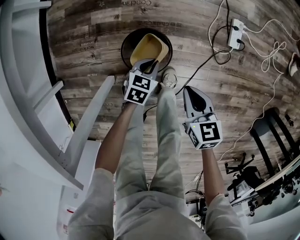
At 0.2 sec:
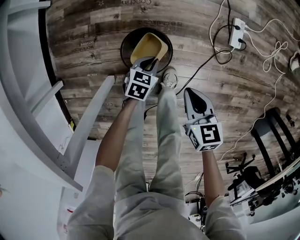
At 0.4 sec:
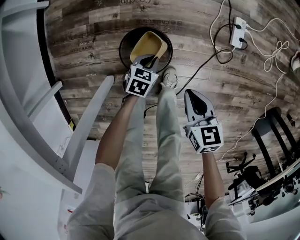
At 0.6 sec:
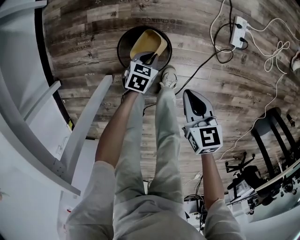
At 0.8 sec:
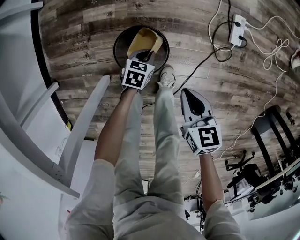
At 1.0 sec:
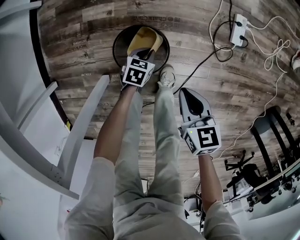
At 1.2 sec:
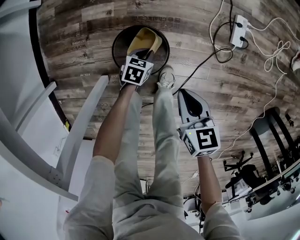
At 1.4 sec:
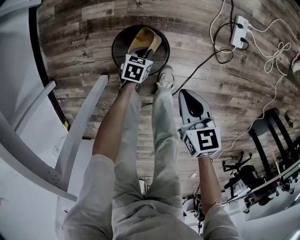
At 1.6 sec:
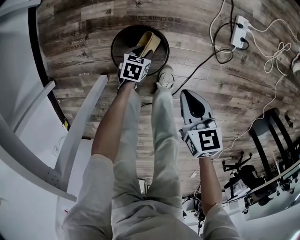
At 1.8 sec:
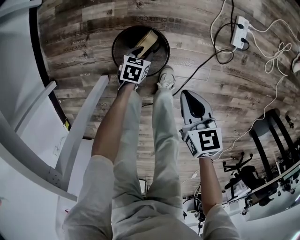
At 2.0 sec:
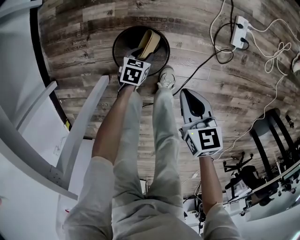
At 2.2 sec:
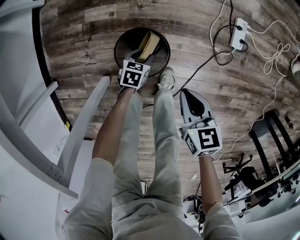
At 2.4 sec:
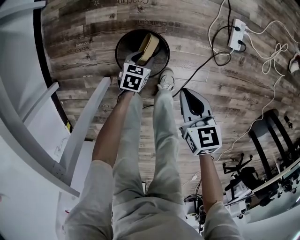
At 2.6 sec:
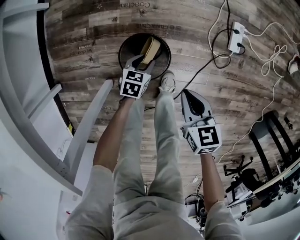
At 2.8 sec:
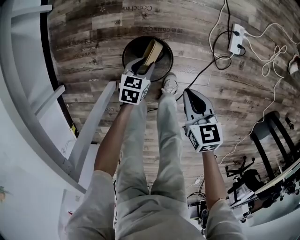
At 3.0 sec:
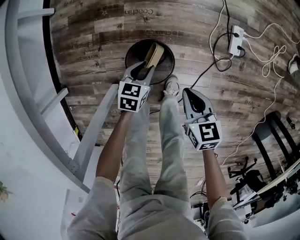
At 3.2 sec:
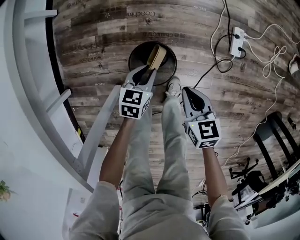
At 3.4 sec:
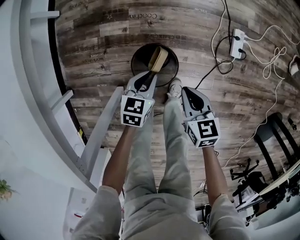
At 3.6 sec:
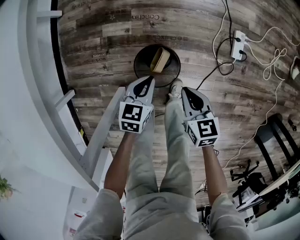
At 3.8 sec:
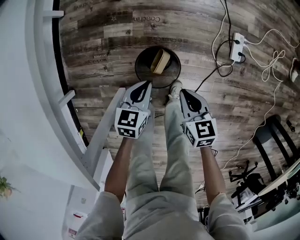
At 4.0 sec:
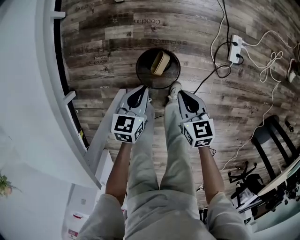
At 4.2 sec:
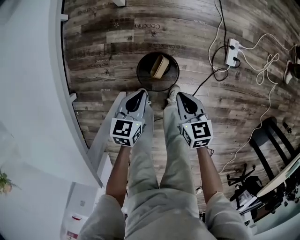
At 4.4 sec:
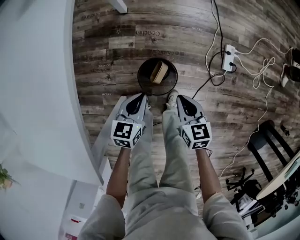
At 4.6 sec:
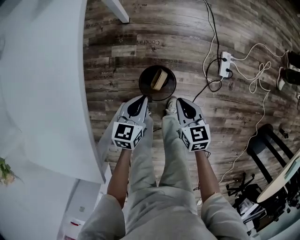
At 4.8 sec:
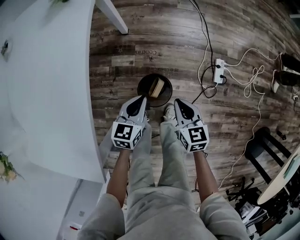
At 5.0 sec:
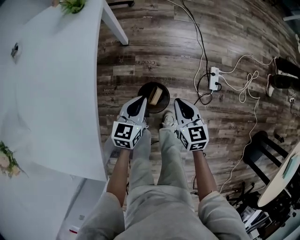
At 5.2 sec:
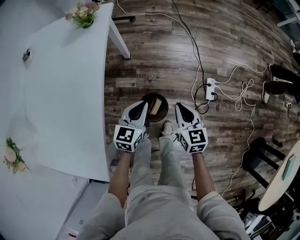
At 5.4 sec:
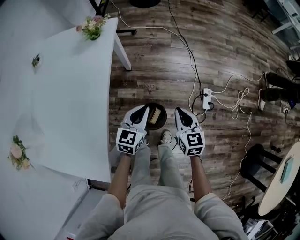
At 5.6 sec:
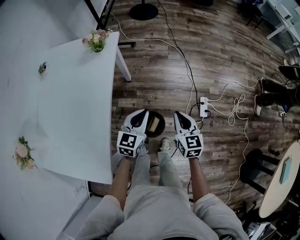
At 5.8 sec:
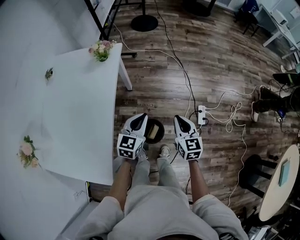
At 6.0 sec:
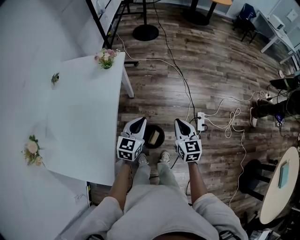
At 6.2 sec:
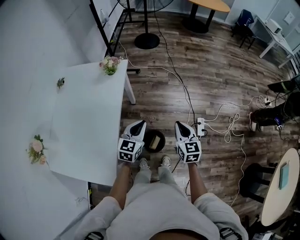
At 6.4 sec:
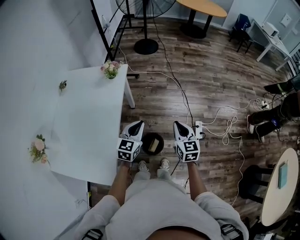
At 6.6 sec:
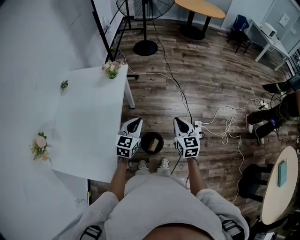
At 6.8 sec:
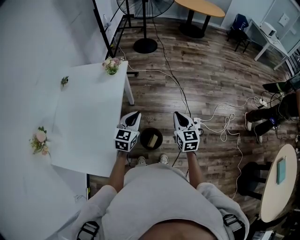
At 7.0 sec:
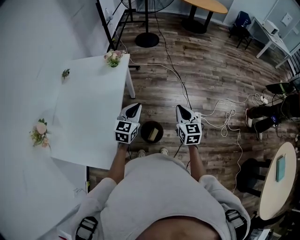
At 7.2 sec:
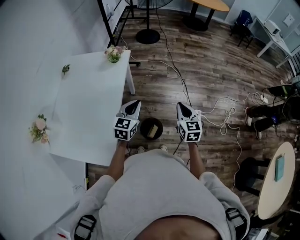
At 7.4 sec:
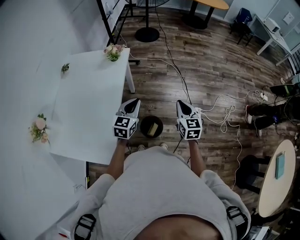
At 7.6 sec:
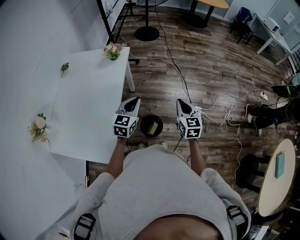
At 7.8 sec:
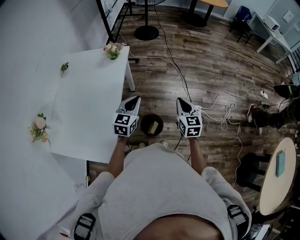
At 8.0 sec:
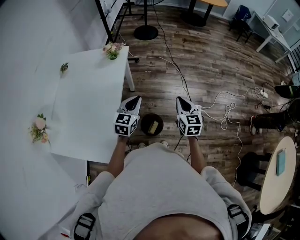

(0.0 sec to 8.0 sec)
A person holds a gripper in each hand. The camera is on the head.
0.0 sec - 1.6 sec: The left gripper shifts some 15 cm downward, and opens its fingers.
1.6 sec - 3.2 sec: The left gripper goes some 20 cm upward, while the right gripper ends up roughly 5 cm from where it was.
3.2 sec - 4.8 sec: The right gripper is displaced upward by approximately 15 cm. Meanwhile the left gripper heads upward, covering roughly 25 cm, and closes its fingers.
4.8 sec - 6.4 sec: Both grippers travel together upward, some 30 cm. The right gripper turns by roughly 20 degrees, while the left gripper changes its angle by approximately 20 degrees.
6.4 sec - 8.0 sec: The grippers make only small movements.

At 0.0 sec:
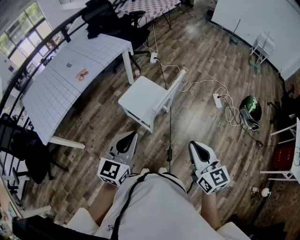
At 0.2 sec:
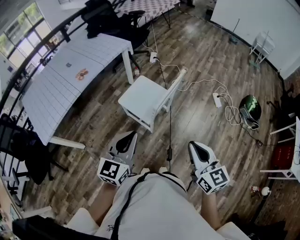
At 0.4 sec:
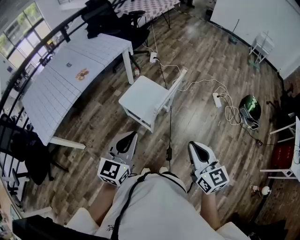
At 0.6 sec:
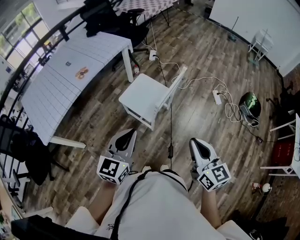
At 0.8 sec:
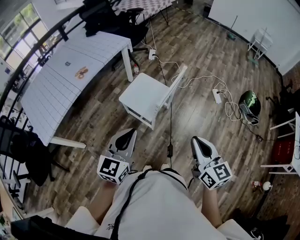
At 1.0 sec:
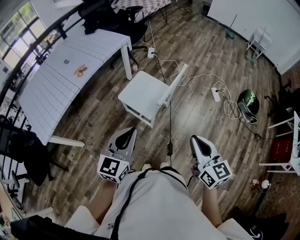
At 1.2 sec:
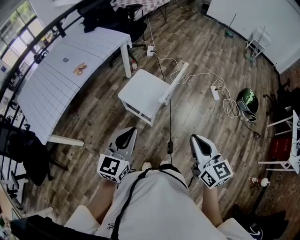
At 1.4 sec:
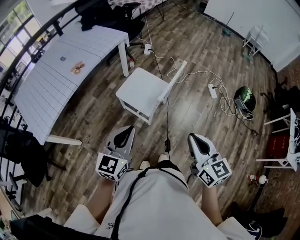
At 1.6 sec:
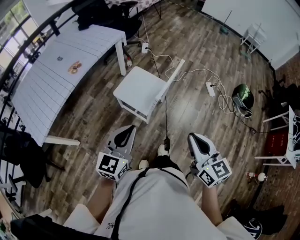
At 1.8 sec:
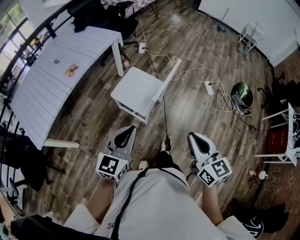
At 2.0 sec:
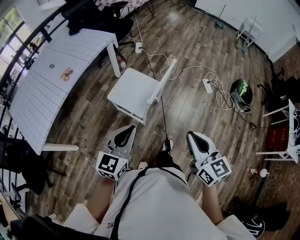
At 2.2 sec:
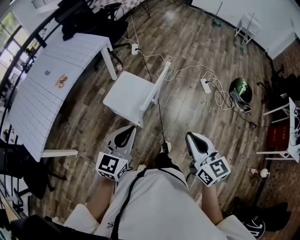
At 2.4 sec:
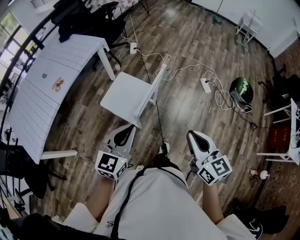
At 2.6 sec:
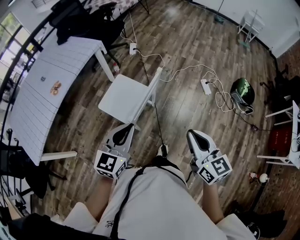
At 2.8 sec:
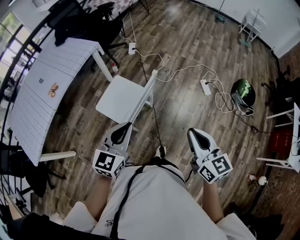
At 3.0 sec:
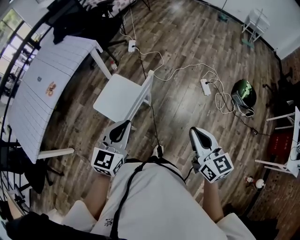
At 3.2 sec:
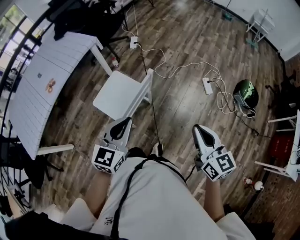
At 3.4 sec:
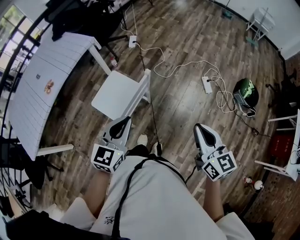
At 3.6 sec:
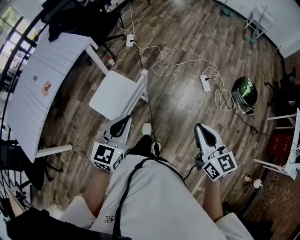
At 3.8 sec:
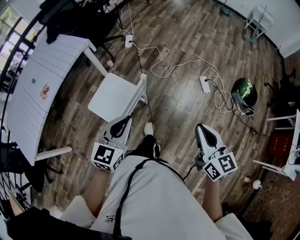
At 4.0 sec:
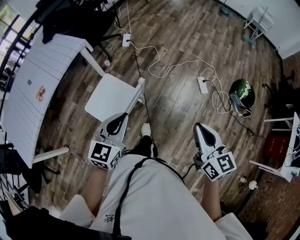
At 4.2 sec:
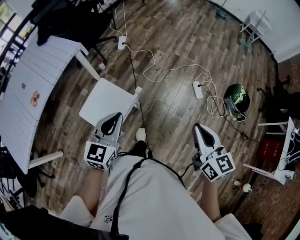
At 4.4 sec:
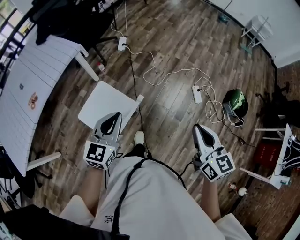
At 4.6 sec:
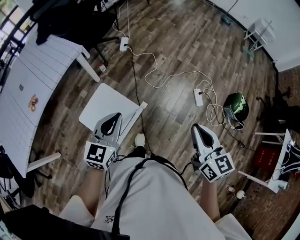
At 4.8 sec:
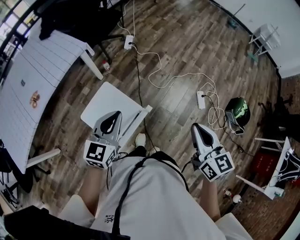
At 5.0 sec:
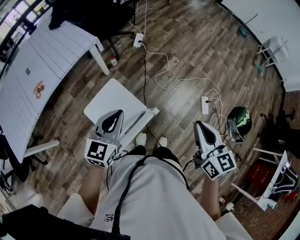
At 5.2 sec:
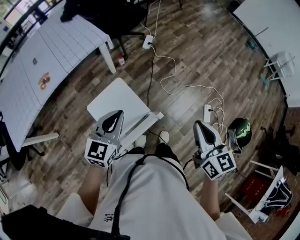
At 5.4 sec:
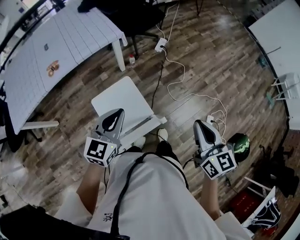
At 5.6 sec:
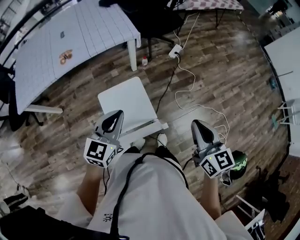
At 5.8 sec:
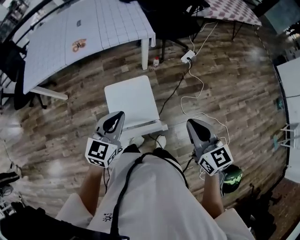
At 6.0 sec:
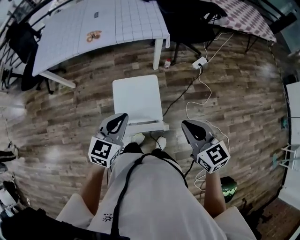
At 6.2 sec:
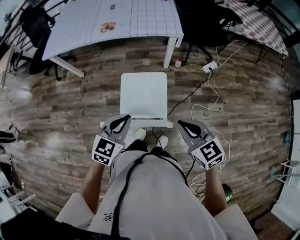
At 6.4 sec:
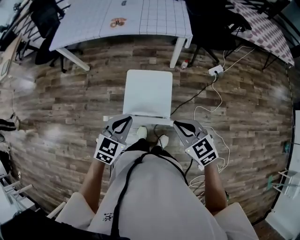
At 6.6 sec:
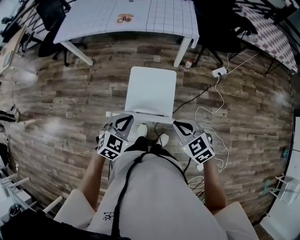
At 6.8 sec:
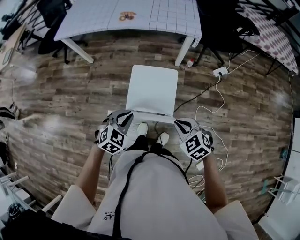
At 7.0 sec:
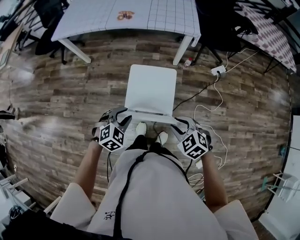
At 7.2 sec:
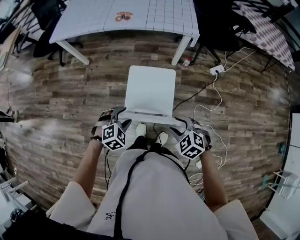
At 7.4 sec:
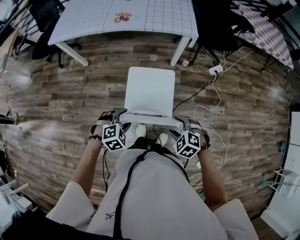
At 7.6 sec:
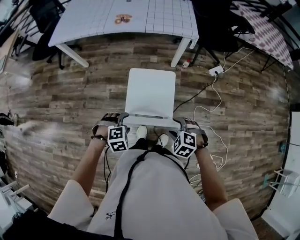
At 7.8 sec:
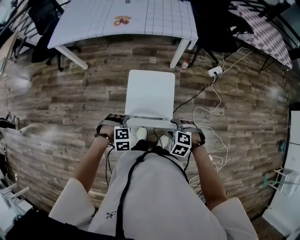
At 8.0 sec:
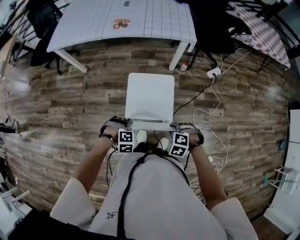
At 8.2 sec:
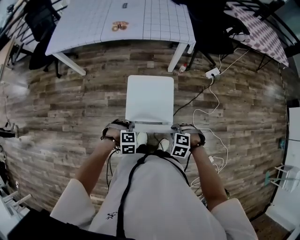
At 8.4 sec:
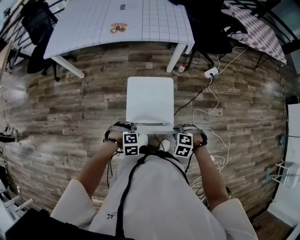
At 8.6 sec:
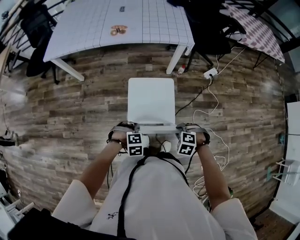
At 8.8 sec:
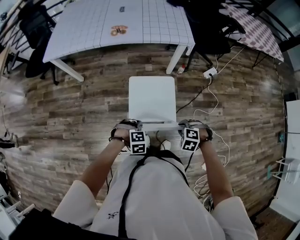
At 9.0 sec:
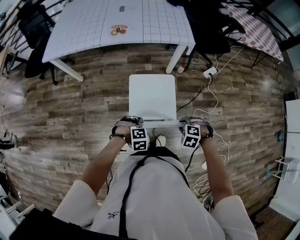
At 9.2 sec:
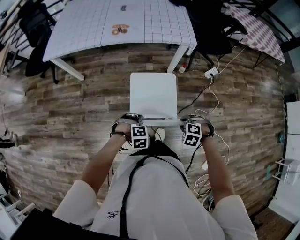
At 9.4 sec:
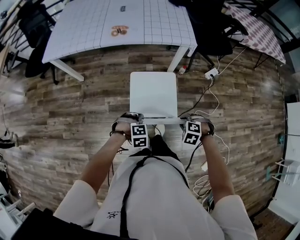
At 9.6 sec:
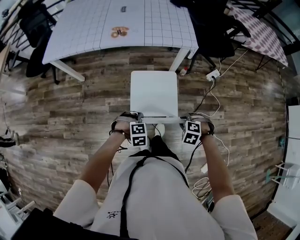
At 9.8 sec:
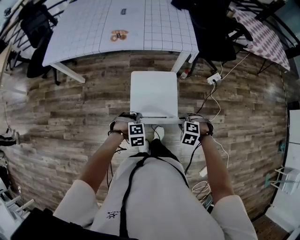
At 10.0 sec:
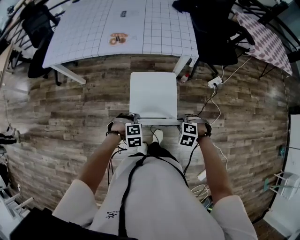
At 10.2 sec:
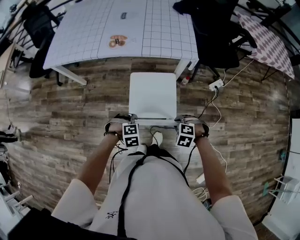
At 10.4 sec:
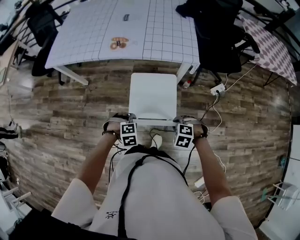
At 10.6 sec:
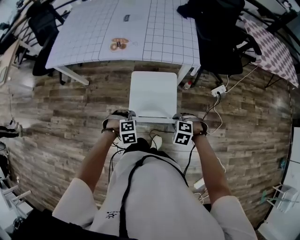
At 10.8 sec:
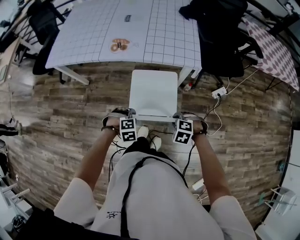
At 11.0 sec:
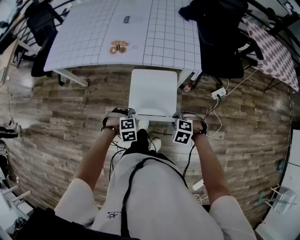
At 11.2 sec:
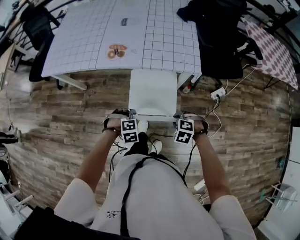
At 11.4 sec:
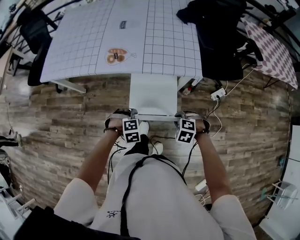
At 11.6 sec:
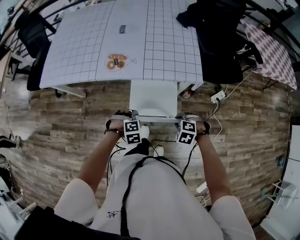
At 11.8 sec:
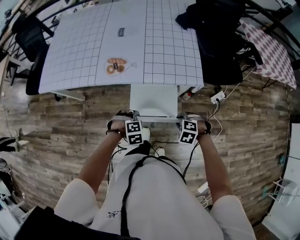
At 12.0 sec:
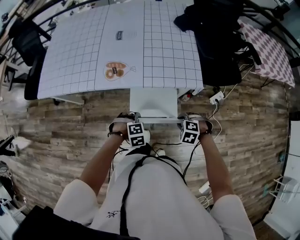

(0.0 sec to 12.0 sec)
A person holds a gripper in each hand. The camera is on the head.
0.0 sec - 1.6 sec: Both grippers travel together to the left, roughly 5 cm.
1.6 sec - 3.0 sec: Both grippers move to the right and forward, about 30 cm.
3.0 sec - 4.4 sec: Both grippers move forward, about 20 cm.
4.4 sec - 6.0 sec: The left gripper turns by approximately 50 degrees, while the right gripper moves roughly 25 cm, and changes its angle by roughly 70 degrees.
6.0 sec - 7.6 sec: The two grippers go roughly 20 cm downward and to the left. The left gripper tips its fingers downward by approximately 50 degrees, and opens its fingers, while the right gripper points its fingers approximately 40 degrees further downward, and opens up.
7.6 sec - 9.0 sec: The left gripper shifts by roughly 5 cm, and closes; the right gripper changes place by about 5 cm, and closes its fingers.
9.0 sec - 10.4 sec: The right gripper moves approximately 20 cm, while the left gripper shifts by roughly 20 cm.
10.4 sec - 12.0 sec: The left gripper shifts by some 25 cm; the right gripper moves roughly 20 cm.

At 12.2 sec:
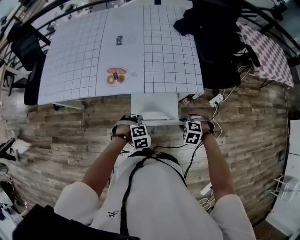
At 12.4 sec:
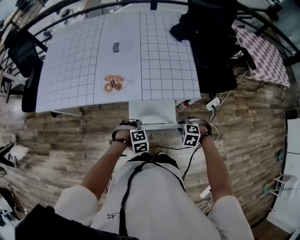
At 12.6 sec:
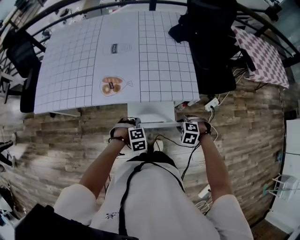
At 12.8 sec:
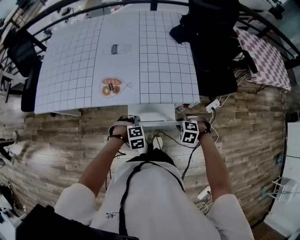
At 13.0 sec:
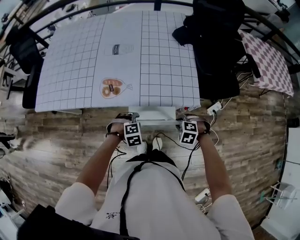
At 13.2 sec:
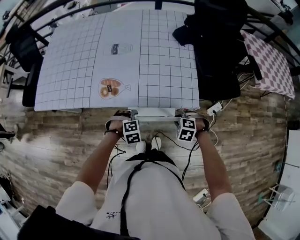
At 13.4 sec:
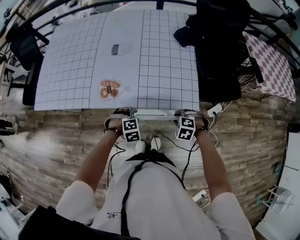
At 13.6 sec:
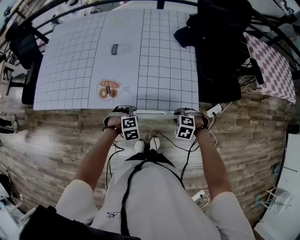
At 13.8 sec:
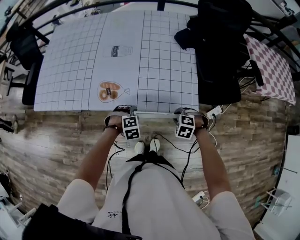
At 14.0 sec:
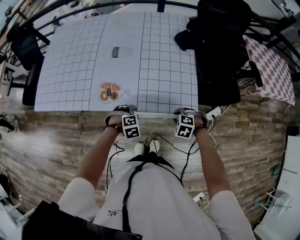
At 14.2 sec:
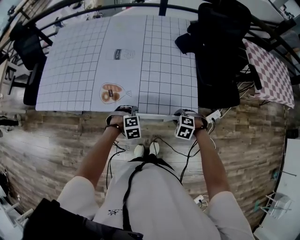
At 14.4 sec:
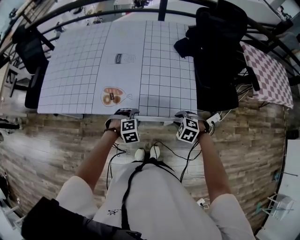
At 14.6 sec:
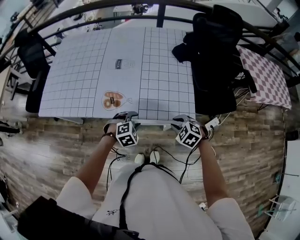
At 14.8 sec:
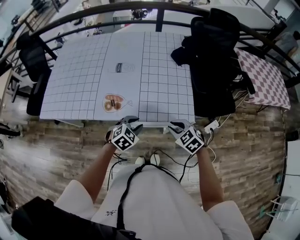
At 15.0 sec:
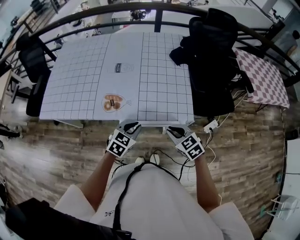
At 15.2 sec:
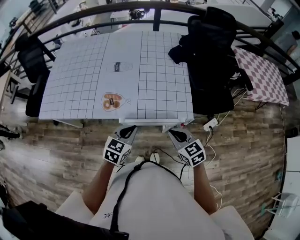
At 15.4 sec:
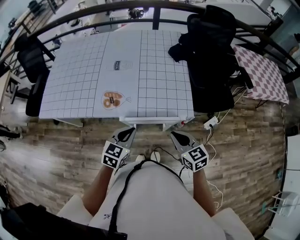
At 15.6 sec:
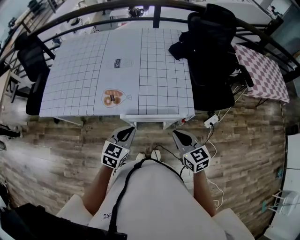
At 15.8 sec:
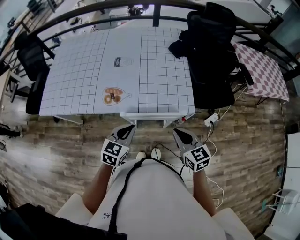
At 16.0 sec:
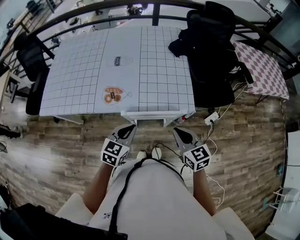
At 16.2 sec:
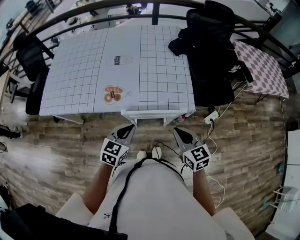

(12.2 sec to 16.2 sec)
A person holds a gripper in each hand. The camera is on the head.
12.2 sec - 13.6 sec: The left gripper moves roughly 15 cm, while the right gripper ends up about 15 cm from where it was.
13.6 sec - 14.8 sec: Both grippers move upward, about 10 cm. The right gripper rotates about 40 degrees. Meanwhile the left gripper changes its angle by roughly 40 degrees.
14.8 sec - 16.2 sec: Both grippers move backward and upward, some 10 cm. The right gripper turns by roughly 40 degrees. The left gripper rotates approximately 30 degrees, and closes.
